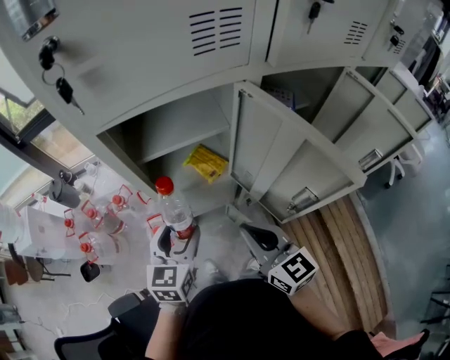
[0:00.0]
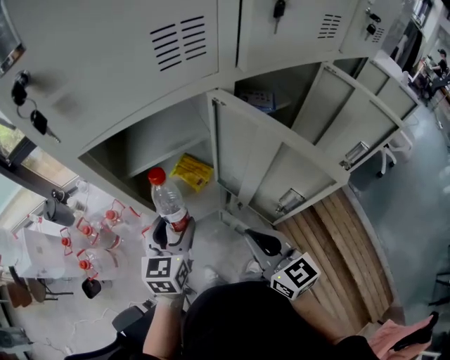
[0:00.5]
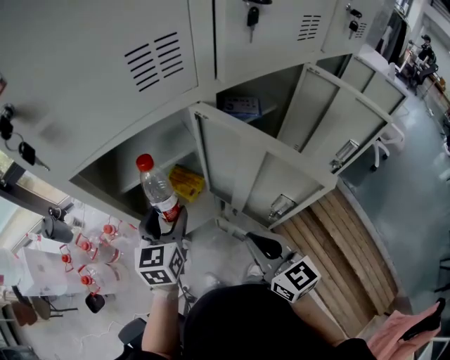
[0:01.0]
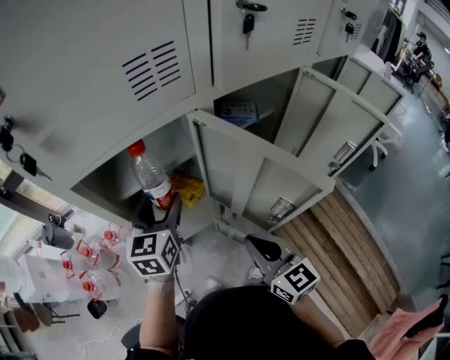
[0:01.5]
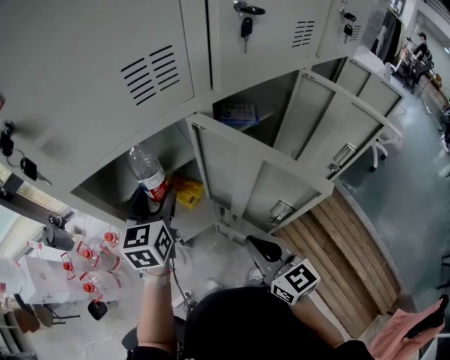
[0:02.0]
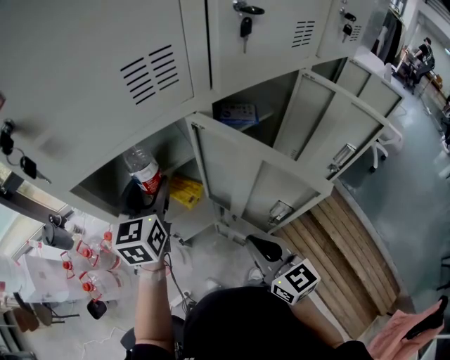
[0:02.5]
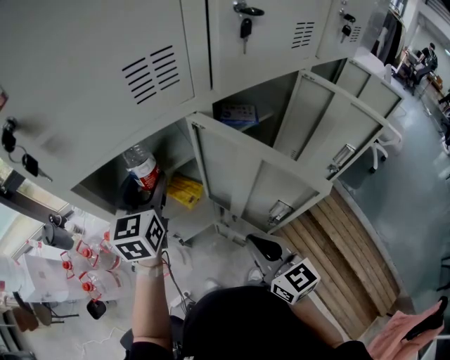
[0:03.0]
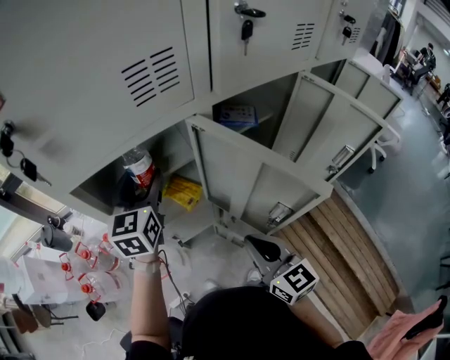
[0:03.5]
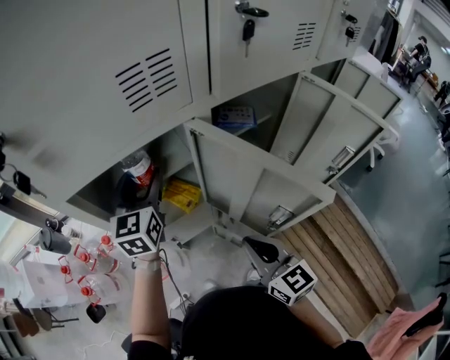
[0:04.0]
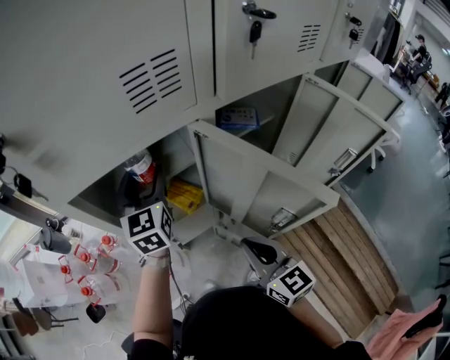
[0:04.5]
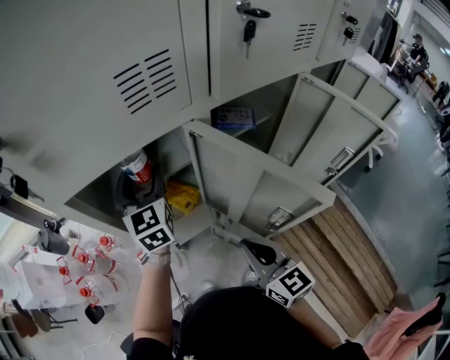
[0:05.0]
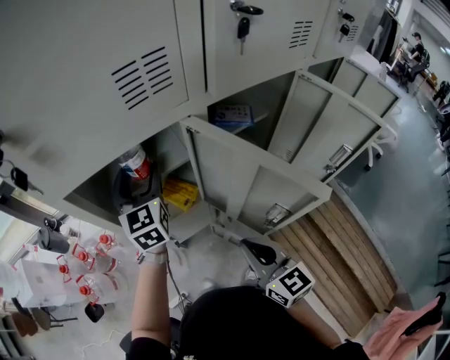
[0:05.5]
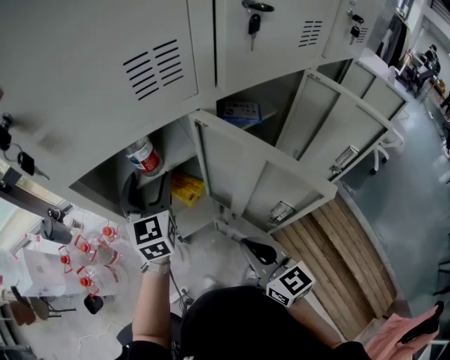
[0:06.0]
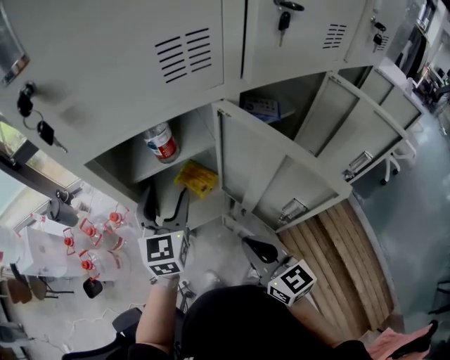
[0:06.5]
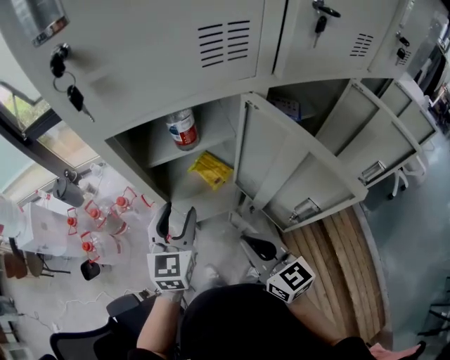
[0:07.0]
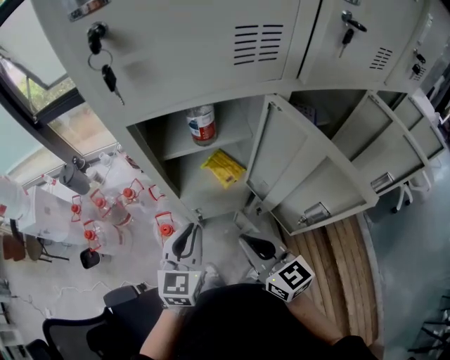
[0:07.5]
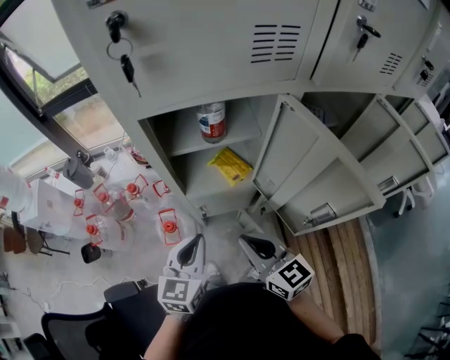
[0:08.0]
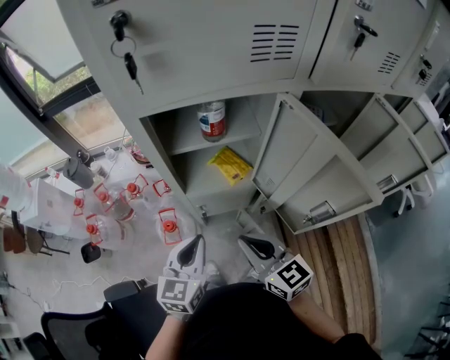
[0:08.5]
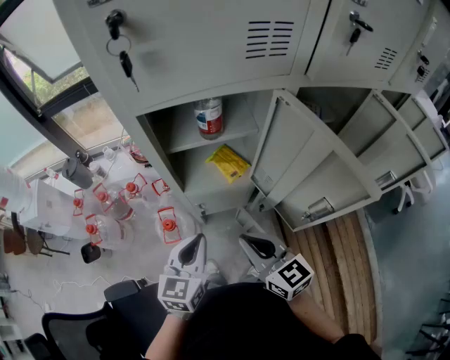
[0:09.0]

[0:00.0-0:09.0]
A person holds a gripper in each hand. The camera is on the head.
0:00.0 to 0:02.0: The right gripper heads to the right, covering some 5 cm; the left gripper heads forward and upward, covering approximately 20 cm.
0:02.0 to 0:04.5: The left gripper goes some 5 cm forward.
0:04.5 to 0:07.0: The right gripper shifts roughly 5 cm to the left; the left gripper heads backward and downward, covering some 20 cm.
0:07.0 to 0:09.0: The left gripper goes about 10 cm backward, and closes.

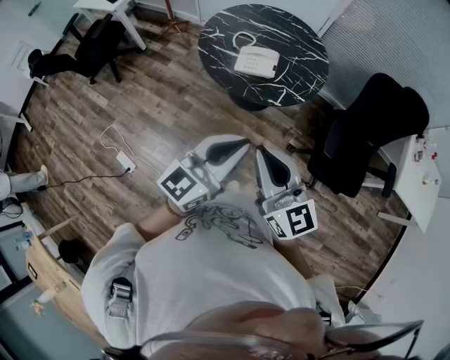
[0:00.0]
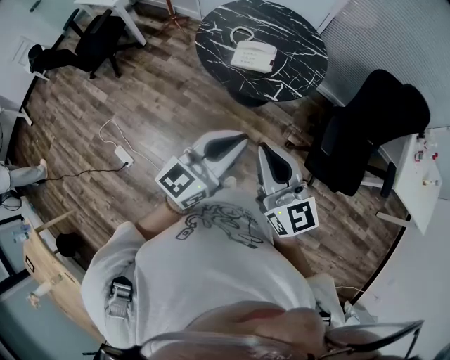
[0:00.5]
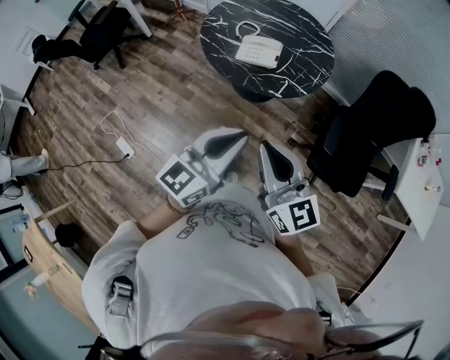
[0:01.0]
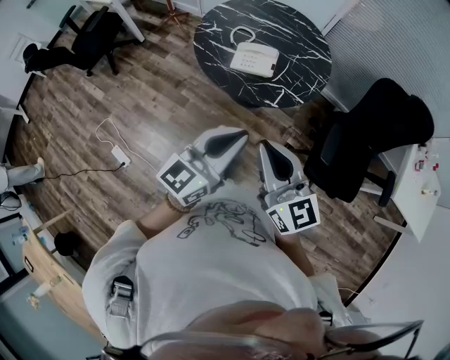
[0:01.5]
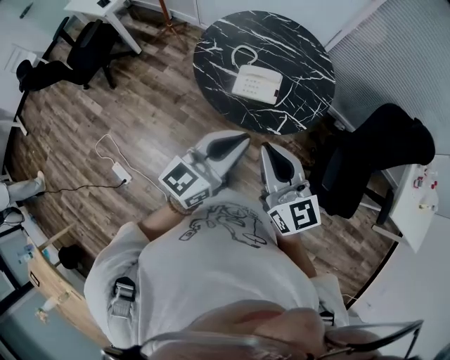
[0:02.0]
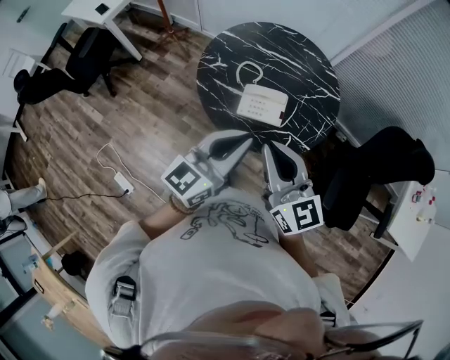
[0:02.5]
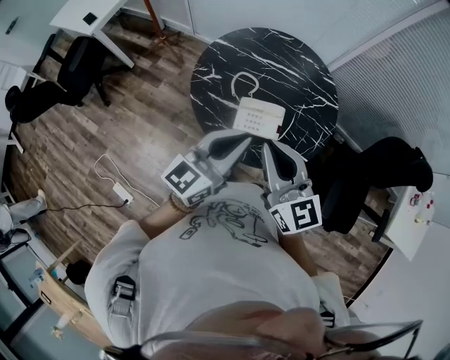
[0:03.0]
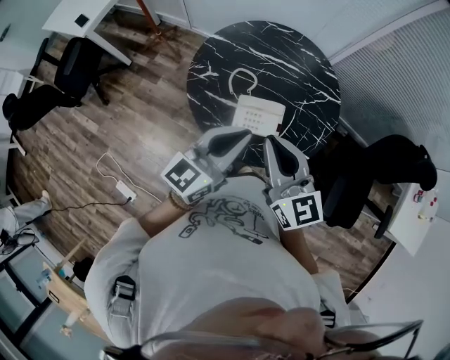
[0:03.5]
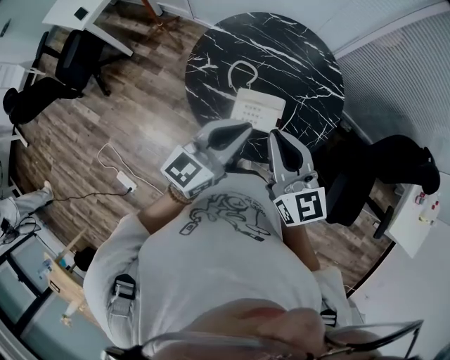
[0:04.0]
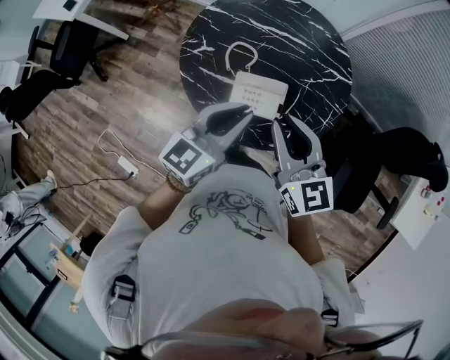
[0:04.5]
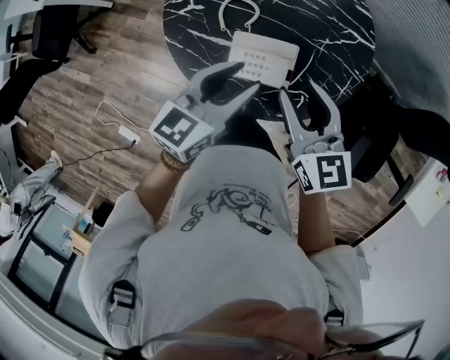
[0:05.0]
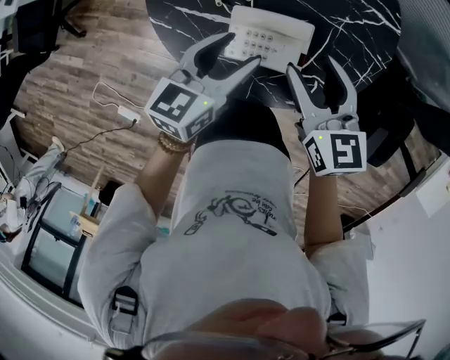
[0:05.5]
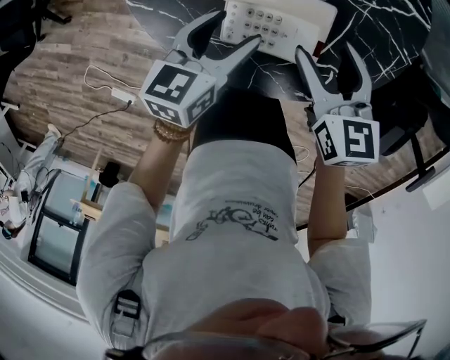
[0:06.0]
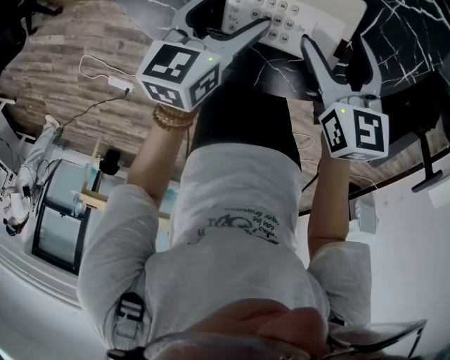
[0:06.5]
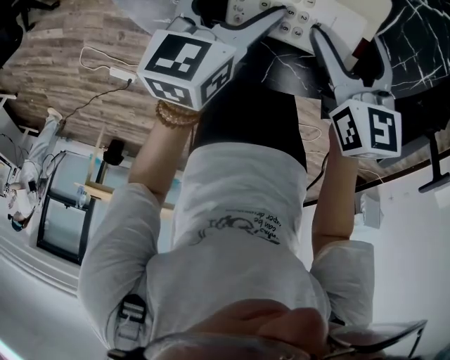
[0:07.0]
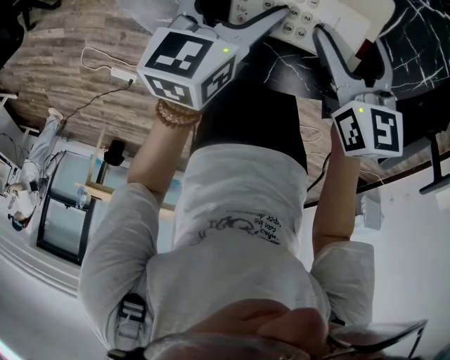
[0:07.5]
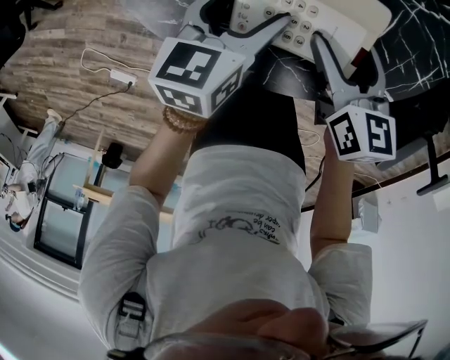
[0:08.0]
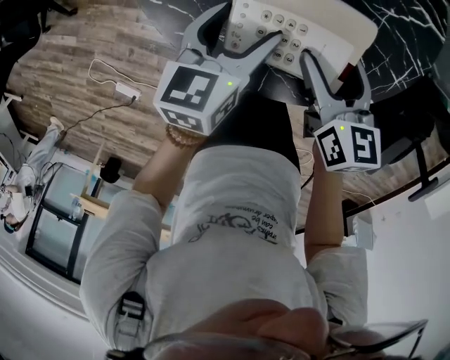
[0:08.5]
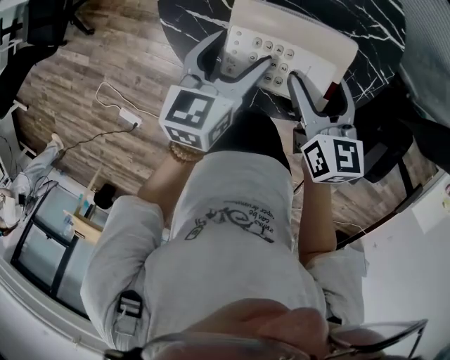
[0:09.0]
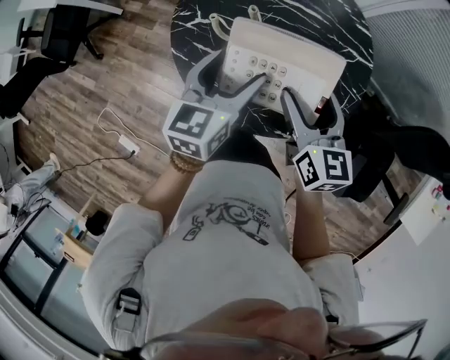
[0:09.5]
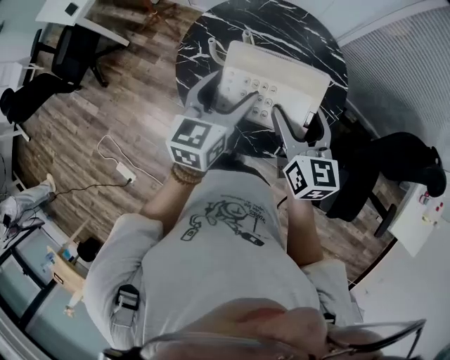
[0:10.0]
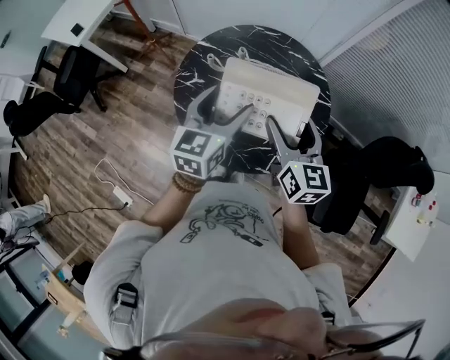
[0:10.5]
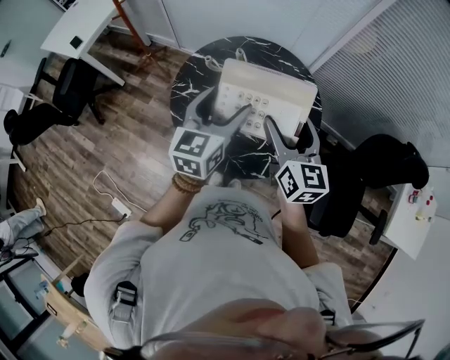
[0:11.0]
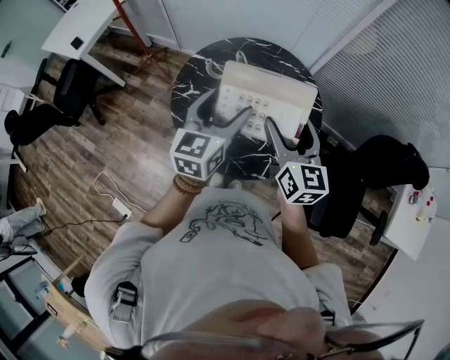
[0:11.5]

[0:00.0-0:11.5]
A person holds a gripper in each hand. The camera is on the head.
0:00.0 to 0:02.0: The grippers both shift forward by roughly 20 cm.
0:02.0 to 0:04.0: Both grippers move forward, about 25 cm.
0:04.0 to 0:06.0: Both grippers travel together downward, approximately 40 cm. The right gripper changes its angle by roughly 30 degrees, and opens up. The left gripper tilts its fingers about 30 degrees downward, and opens.
0:06.0 to 0:07.5: The grippers both shift downward by some 10 cm.
0:07.5 to 0:09.5: Both grippers travel together upward, about 35 cm. The left gripper changes its angle by roughly 20 degrees.
0:09.5 to 0:11.5: Both grippers travel together upward, some 20 cm.

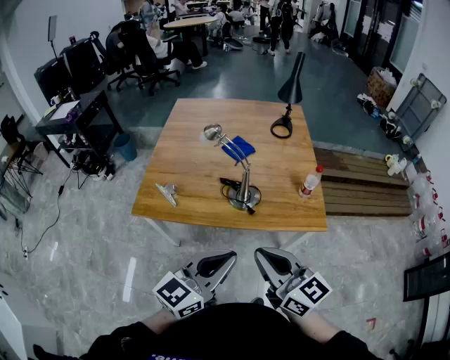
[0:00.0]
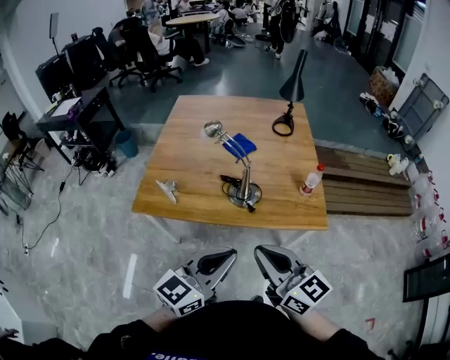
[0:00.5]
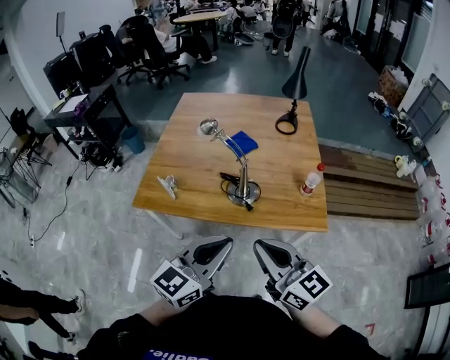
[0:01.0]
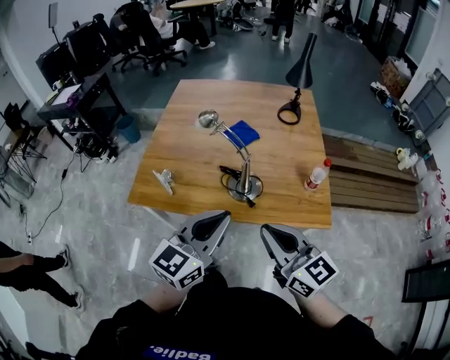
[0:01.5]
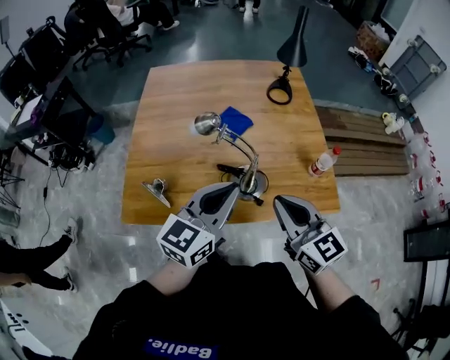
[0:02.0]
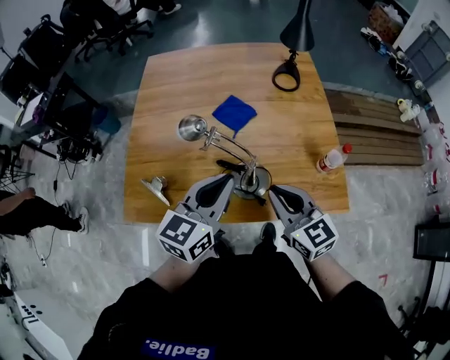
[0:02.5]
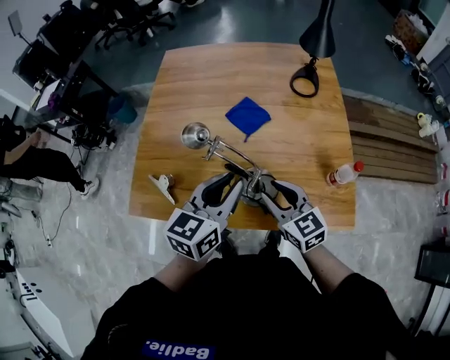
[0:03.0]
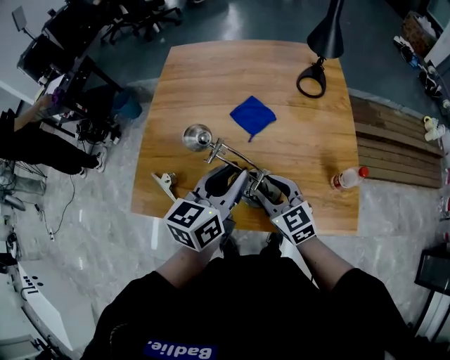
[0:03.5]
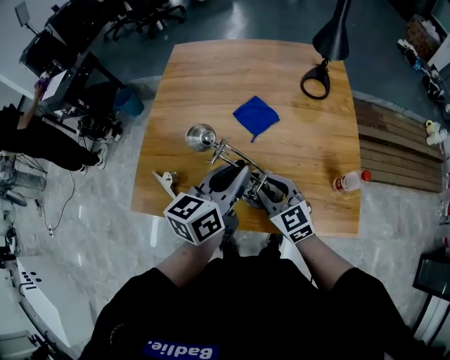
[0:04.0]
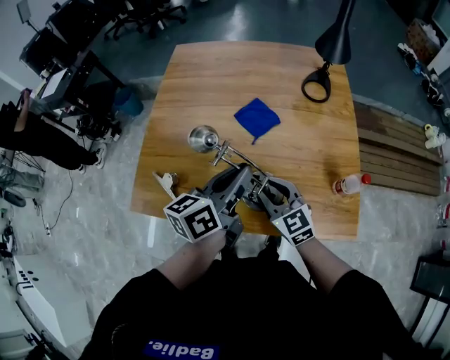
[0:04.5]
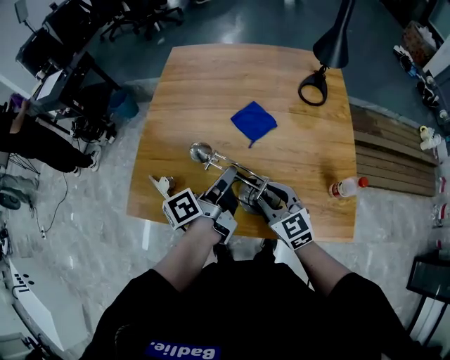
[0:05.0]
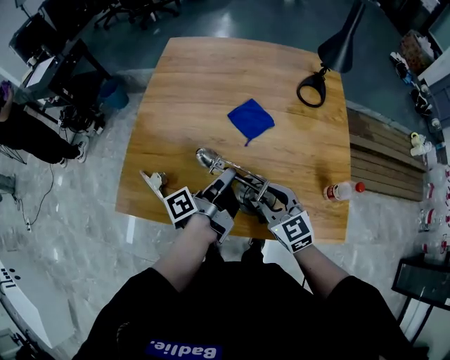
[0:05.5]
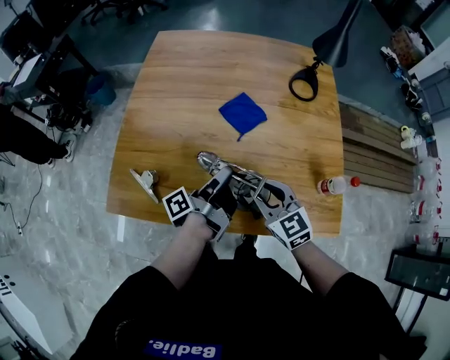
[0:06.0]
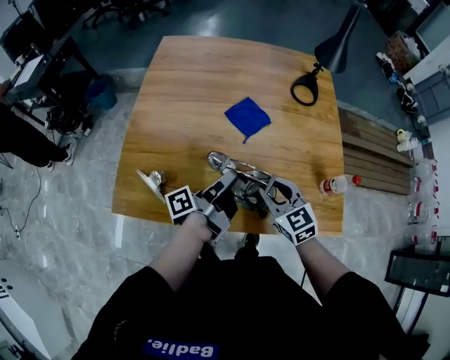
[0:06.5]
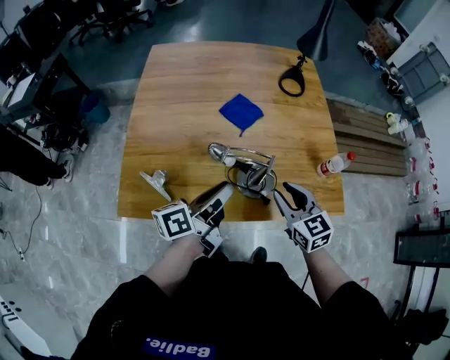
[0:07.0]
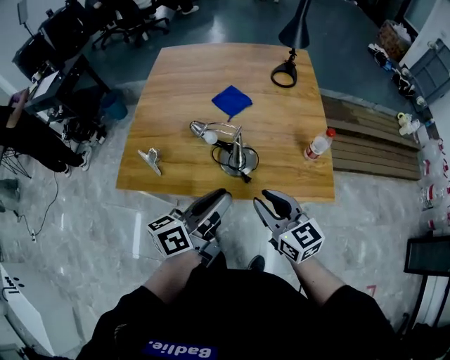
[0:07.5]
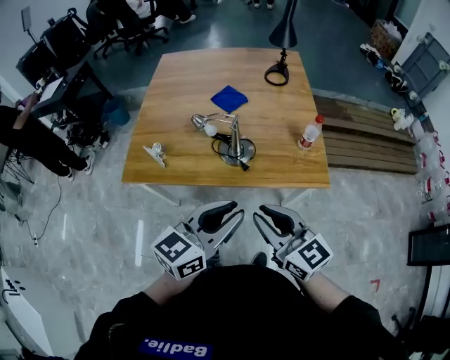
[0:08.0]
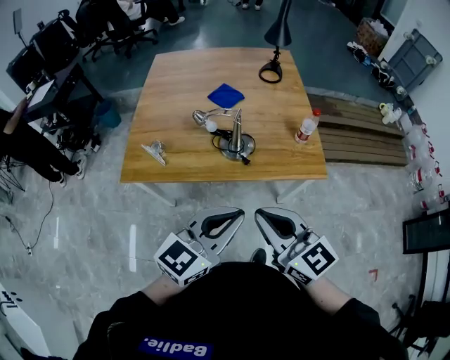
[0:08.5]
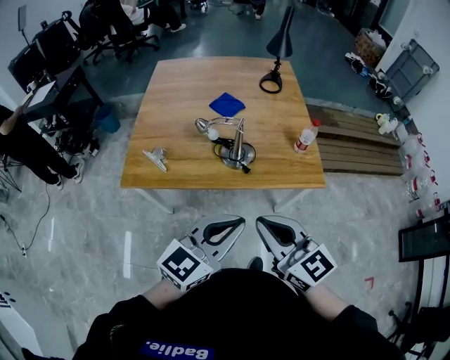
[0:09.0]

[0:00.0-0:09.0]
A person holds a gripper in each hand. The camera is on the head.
0:00.0 to 0:02.0: Both grippers travel together forward, approximately 25 cm.
0:02.0 to 0:04.5: The left gripper heads forward and downward, covering approximately 15 cm, and rotates about 40 degrees; the right gripper moves downward and forward, some 20 cm, swivels approximately 20 degrees, and opens.
0:04.5 to 0:07.0: The right gripper is displaced backward by roughly 5 cm, while the left gripper travels to the left, backward and downward by about 15 cm, and turns by some 30 degrees.
0:07.0 to 0:09.0: The left gripper is displaced backward, to the right and upward by about 35 cm, twists some 60 degrees clockwise, seen from behind, and closes its fingers. Meanwhile the right gripper moves backward and upward, approximately 35 cm, rotates some 20 degrees, and closes.
